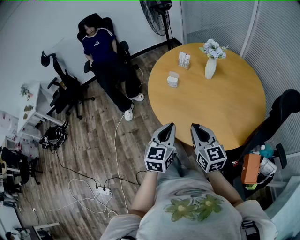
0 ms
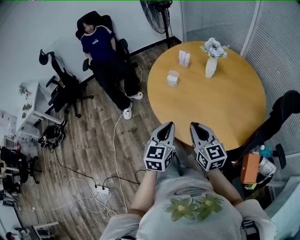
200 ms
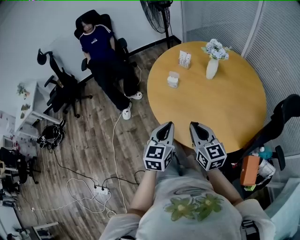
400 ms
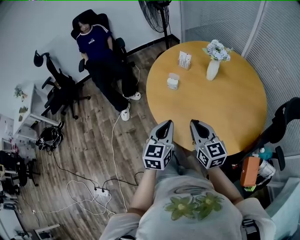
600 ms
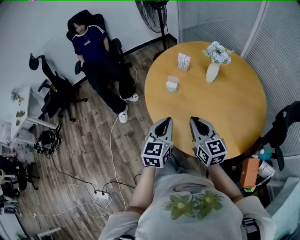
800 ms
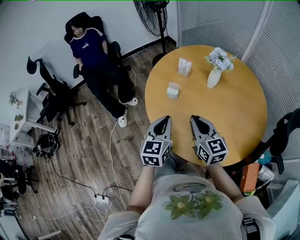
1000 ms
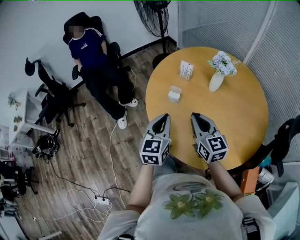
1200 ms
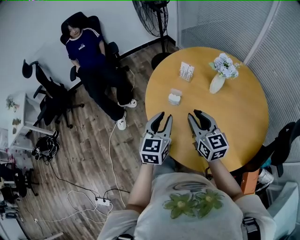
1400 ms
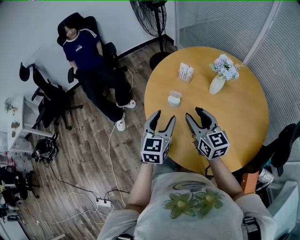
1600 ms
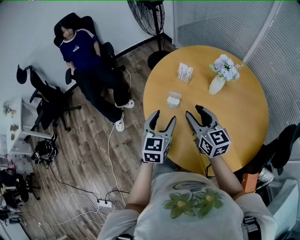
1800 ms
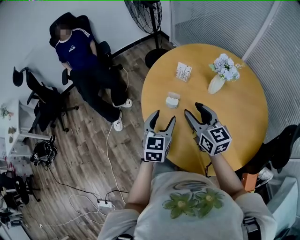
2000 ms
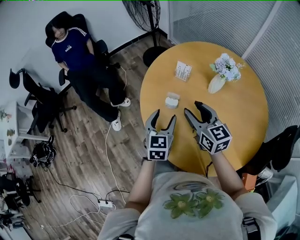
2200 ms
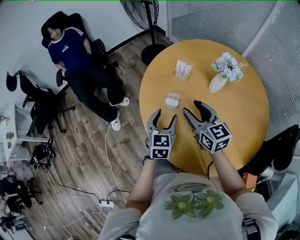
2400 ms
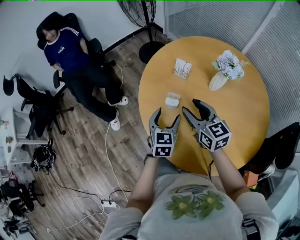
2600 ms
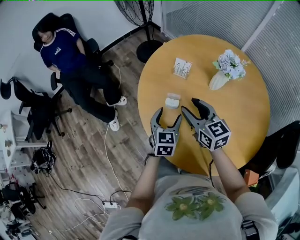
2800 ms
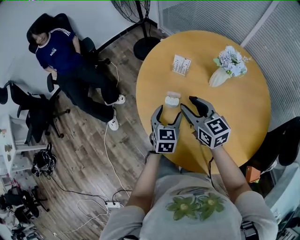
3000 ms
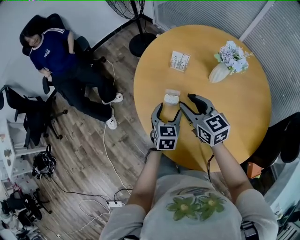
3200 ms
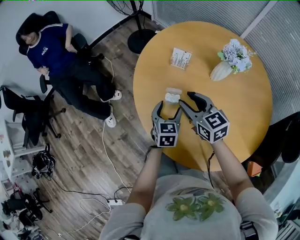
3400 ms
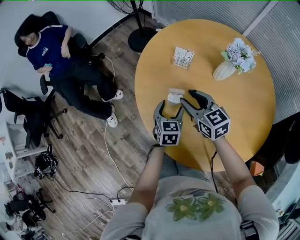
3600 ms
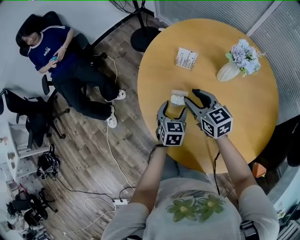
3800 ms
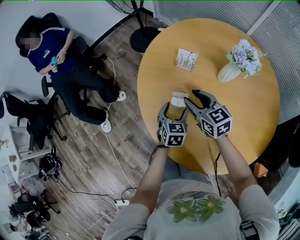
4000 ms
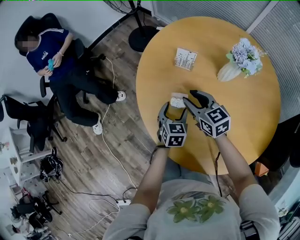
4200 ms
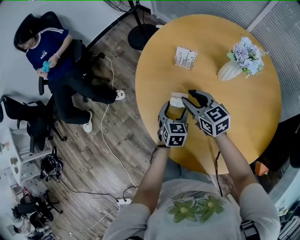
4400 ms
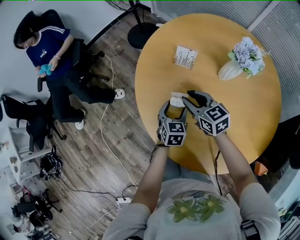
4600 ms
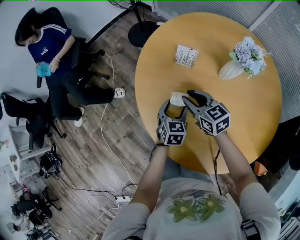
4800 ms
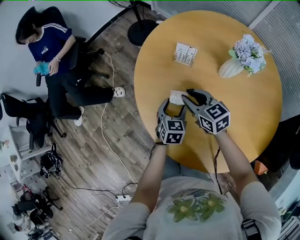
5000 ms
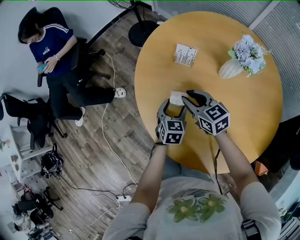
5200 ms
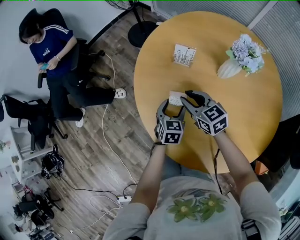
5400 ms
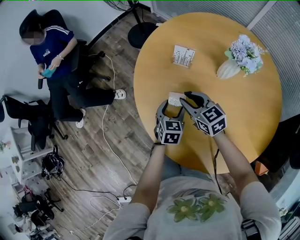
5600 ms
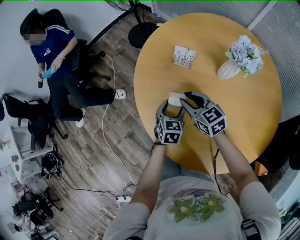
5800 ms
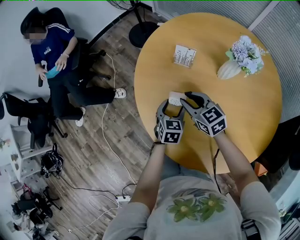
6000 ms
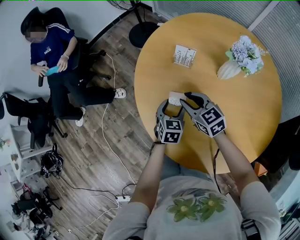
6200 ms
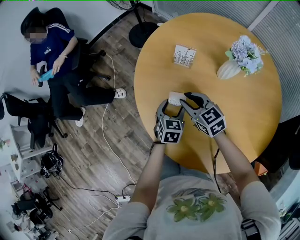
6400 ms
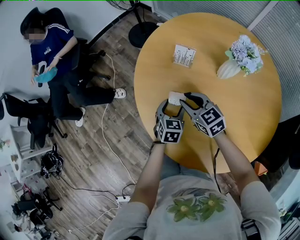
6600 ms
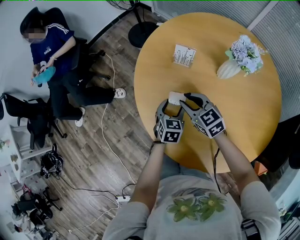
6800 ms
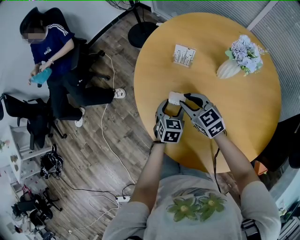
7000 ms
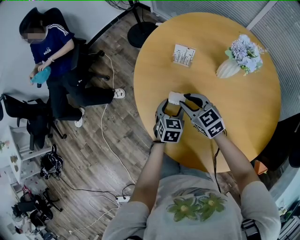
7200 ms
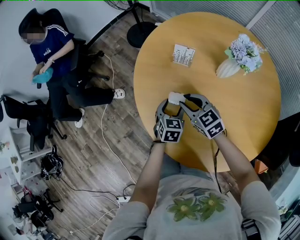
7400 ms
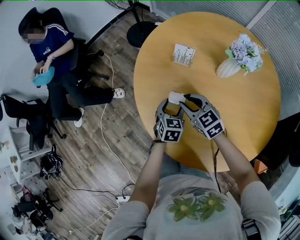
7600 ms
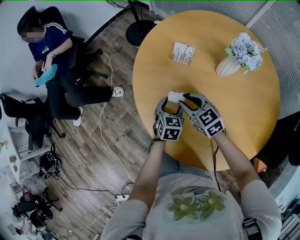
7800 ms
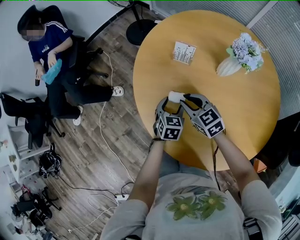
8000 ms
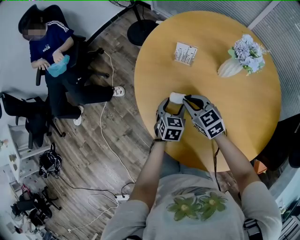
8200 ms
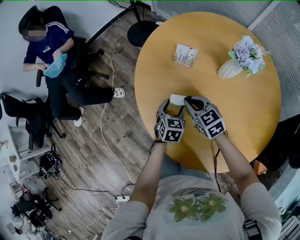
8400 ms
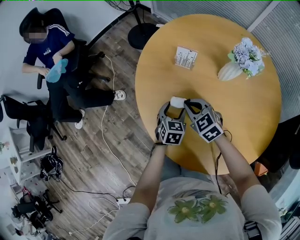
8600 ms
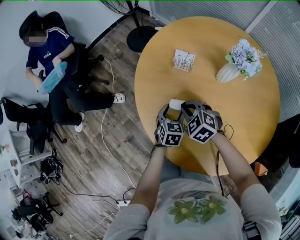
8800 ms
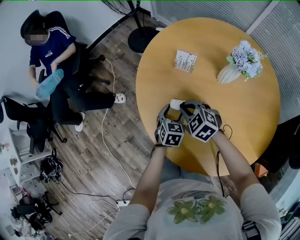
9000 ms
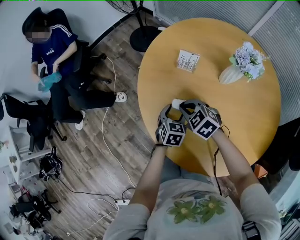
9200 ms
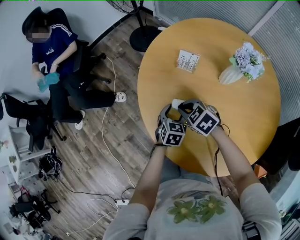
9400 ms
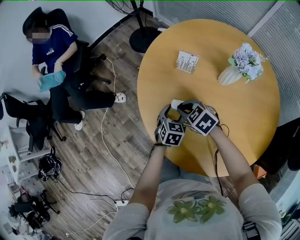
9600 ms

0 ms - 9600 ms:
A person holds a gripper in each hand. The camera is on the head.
0 ms - 1600 ms: The grippers both shift forward by some 25 cm. The right gripper opens up. The left gripper opens up.
1600 ms - 3200 ms: The right gripper heads forward and downward, covering approximately 15 cm. The left gripper goes about 20 cm downward and forward.
3200 ms - 4800 ms: The left gripper is displaced downward by about 10 cm, while the right gripper heads downward and forward, covering approximately 10 cm.
4800 ms - 8000 ms: The grippers stay close to where they were, moving slightly.
8000 ms - 9600 ms: The right gripper swivels roughly 20 degrees, and closes.

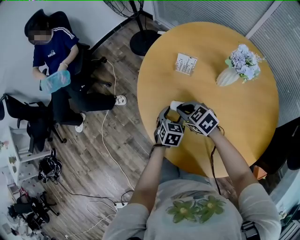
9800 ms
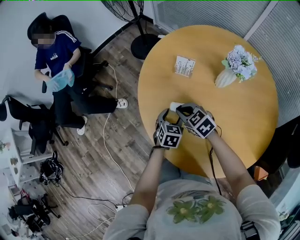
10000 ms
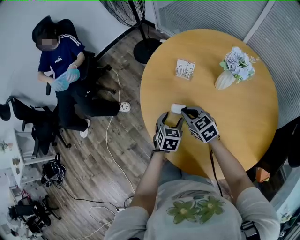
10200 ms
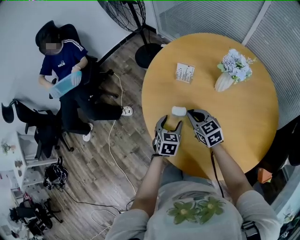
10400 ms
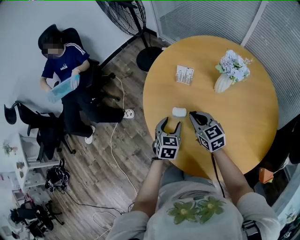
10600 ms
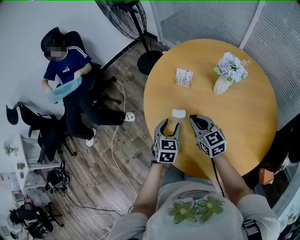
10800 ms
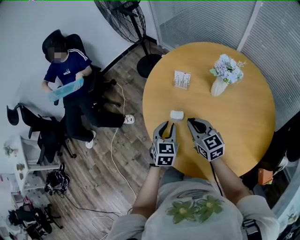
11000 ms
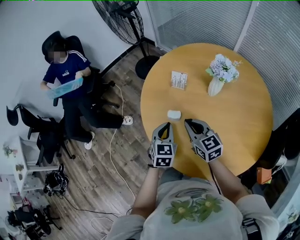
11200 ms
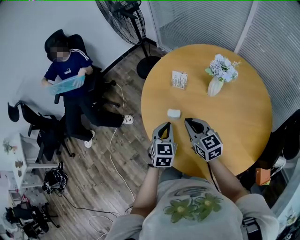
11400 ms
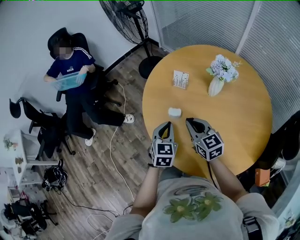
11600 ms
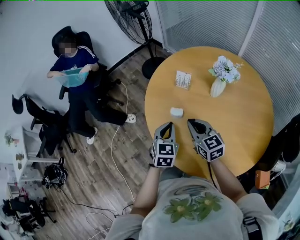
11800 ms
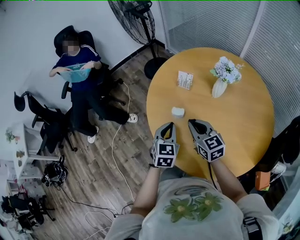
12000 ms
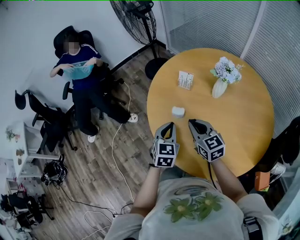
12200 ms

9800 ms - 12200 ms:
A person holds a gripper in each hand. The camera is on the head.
9800 ms - 11000 ms: The left gripper shifts about 15 cm upward, and closes; the right gripper goes about 10 cm upward and backward, and turns by about 40 degrees.
11000 ms - 12200 ms: The left gripper ends up approximately 5 cm from where it was; the right gripper changes place by about 5 cm.

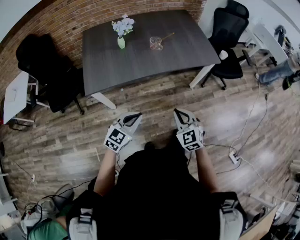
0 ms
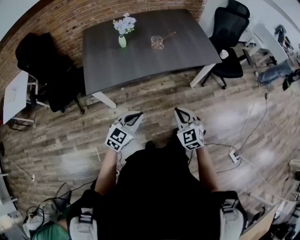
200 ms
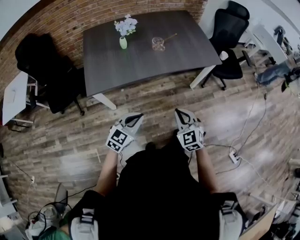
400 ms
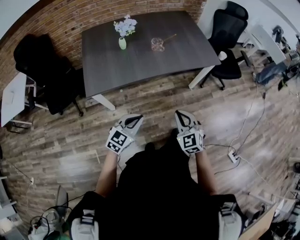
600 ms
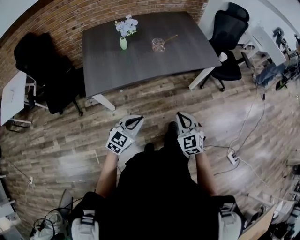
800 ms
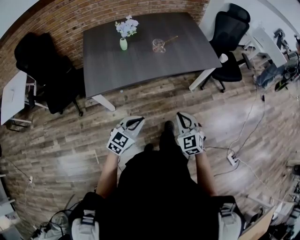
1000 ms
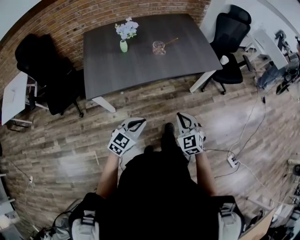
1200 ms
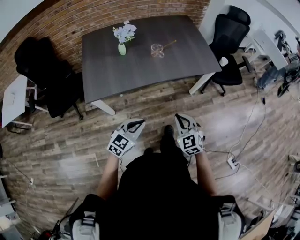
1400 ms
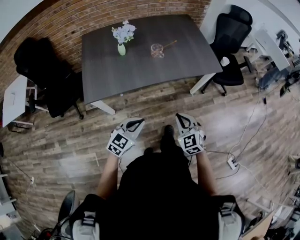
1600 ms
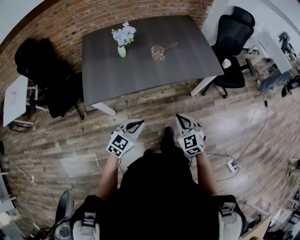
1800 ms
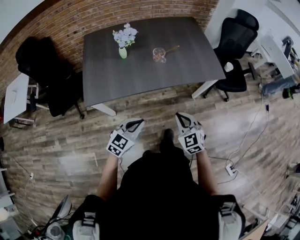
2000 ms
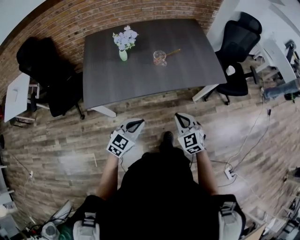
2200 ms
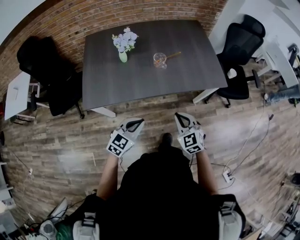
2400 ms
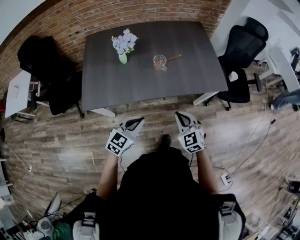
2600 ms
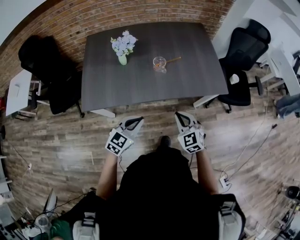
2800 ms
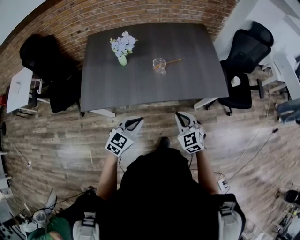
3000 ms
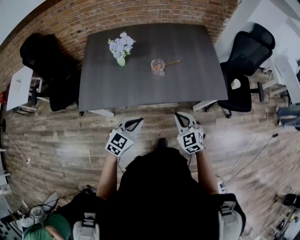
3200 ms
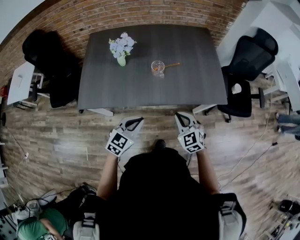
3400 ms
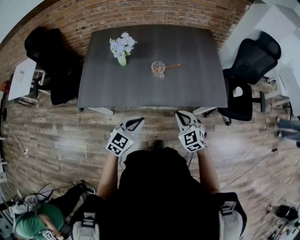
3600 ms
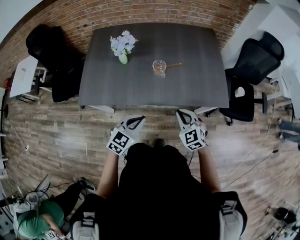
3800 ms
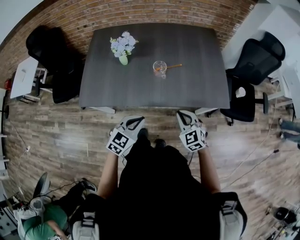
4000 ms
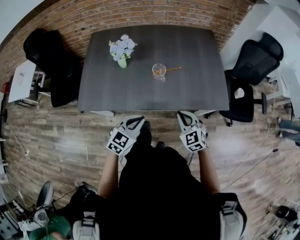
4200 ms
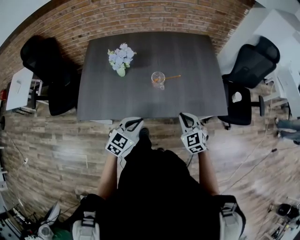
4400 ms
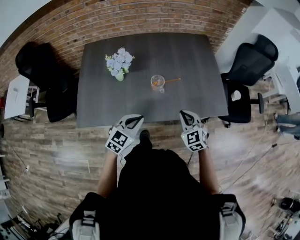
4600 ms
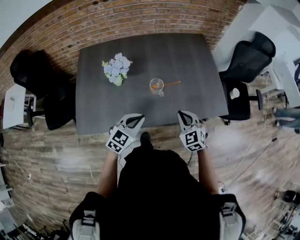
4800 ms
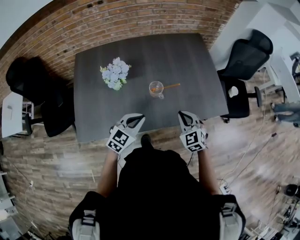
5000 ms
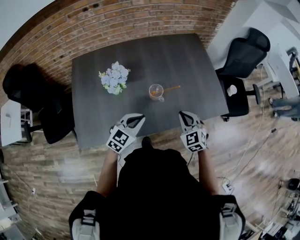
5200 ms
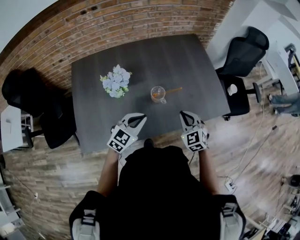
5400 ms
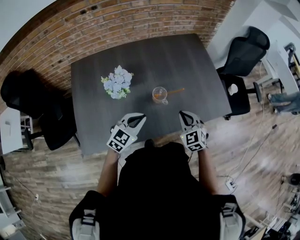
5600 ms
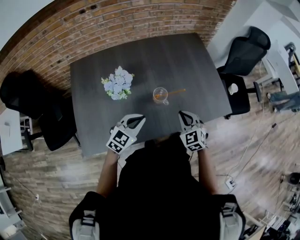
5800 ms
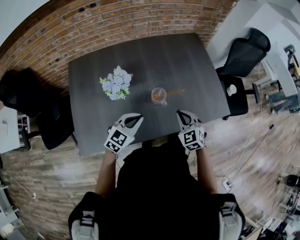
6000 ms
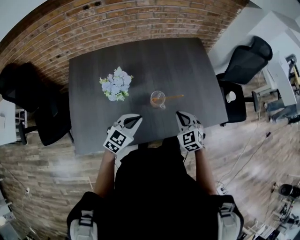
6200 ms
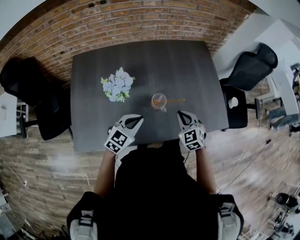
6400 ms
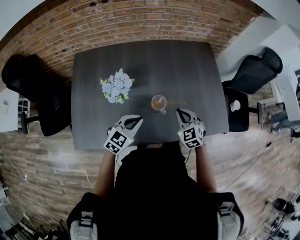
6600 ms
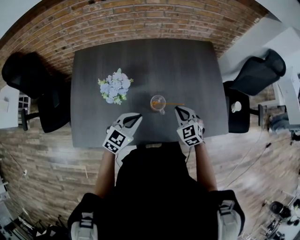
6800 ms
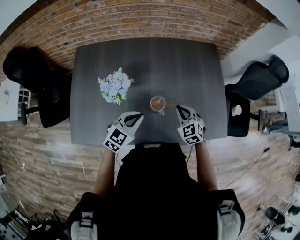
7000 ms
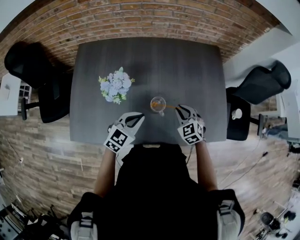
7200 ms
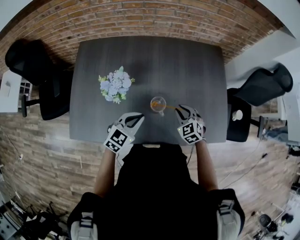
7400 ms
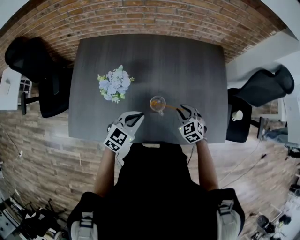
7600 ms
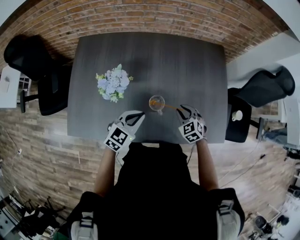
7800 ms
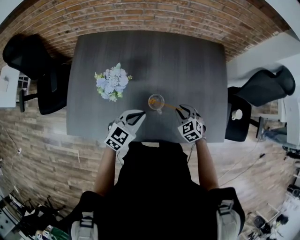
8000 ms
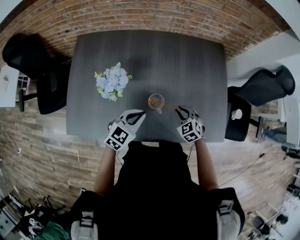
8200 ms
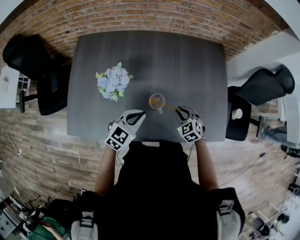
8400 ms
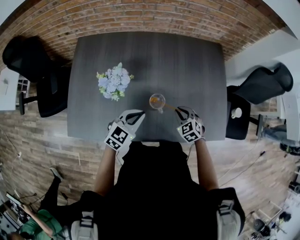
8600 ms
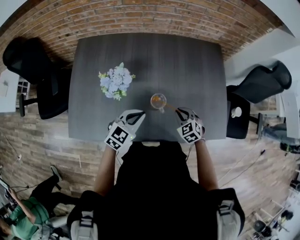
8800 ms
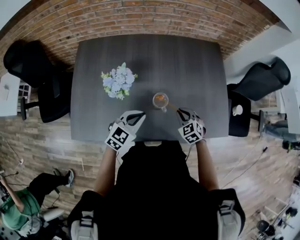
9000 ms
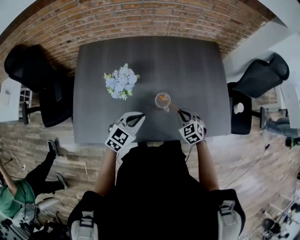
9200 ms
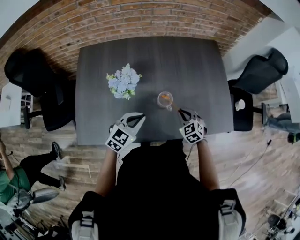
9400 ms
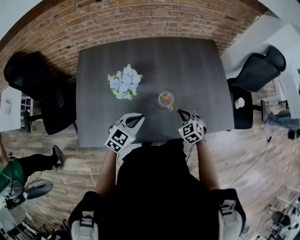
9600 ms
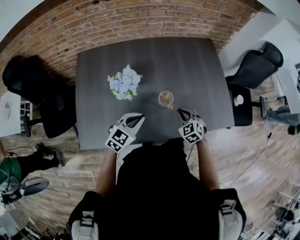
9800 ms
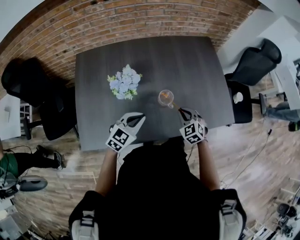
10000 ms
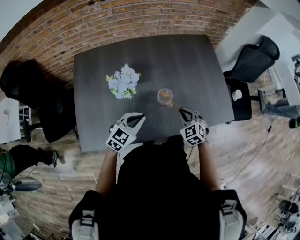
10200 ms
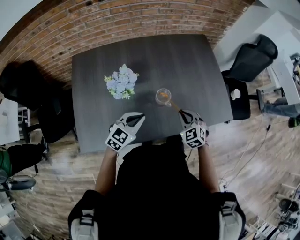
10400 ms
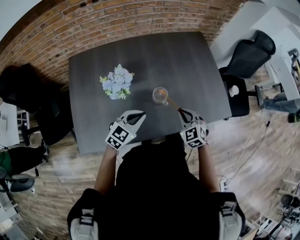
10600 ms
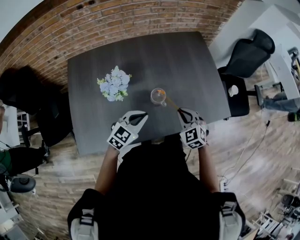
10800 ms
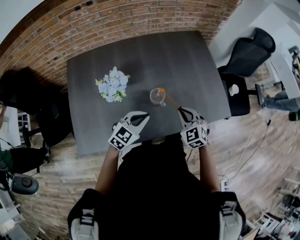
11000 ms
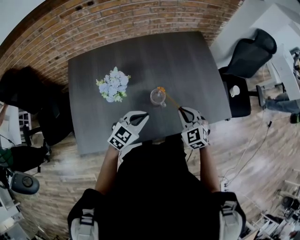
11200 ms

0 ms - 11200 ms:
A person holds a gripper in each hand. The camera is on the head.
0 ms - 1600 ms: Both grippers travel together forward, about 5 cm.
1600 ms - 3200 ms: Both grippers move forward, about 20 cm.
3200 ms - 4800 ms: Both grippers travel together forward, roughly 15 cm.
4800 ms - 6400 ms: Both grippers travel together forward and to the left, roughly 10 cm.
6400 ms - 8000 ms: The left gripper goes approximately 5 cm forward. Meanwhile the right gripper goes approximately 15 cm downward and forward.
8000 ms - 9600 ms: The right gripper is displaced backward and to the left by approximately 10 cm, while the left gripper goes some 10 cm to the left and backward.
9600 ms - 11200 ms: The right gripper travels upward by roughly 10 cm; the left gripper travels to the right by approximately 5 cm.

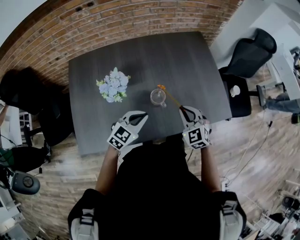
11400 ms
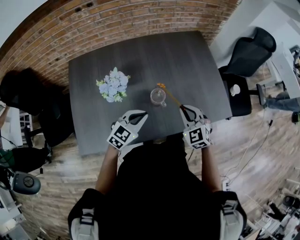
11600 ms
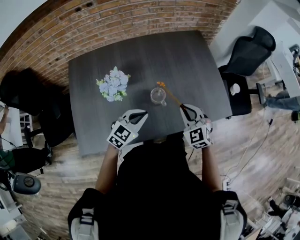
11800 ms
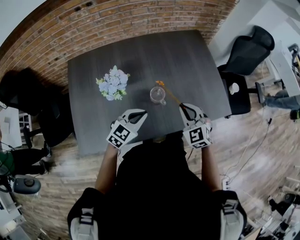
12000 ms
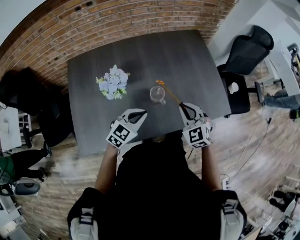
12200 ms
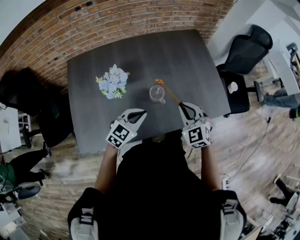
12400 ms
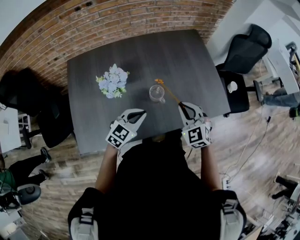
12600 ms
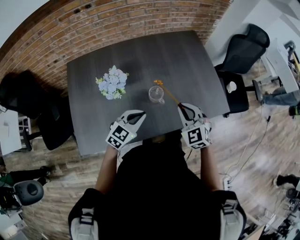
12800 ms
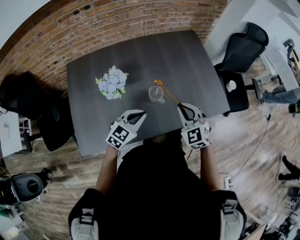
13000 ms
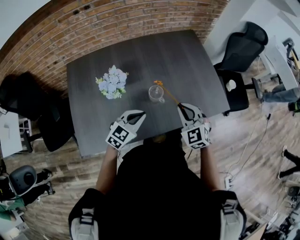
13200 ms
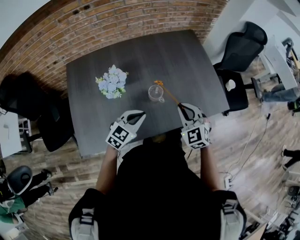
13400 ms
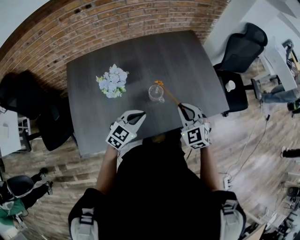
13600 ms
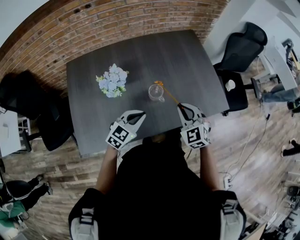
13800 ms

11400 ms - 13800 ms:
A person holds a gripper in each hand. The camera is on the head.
11400 ms - 13800 ms: The grippers stay close to where they were, moving slightly.
